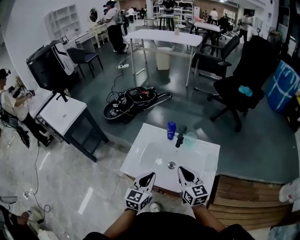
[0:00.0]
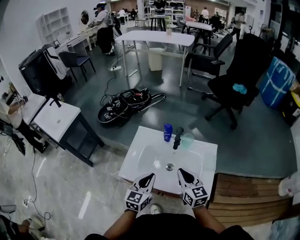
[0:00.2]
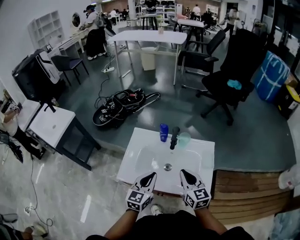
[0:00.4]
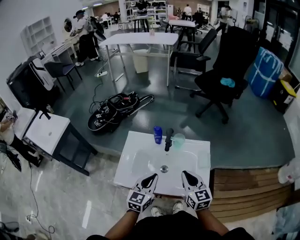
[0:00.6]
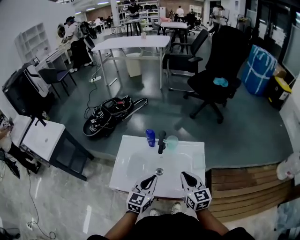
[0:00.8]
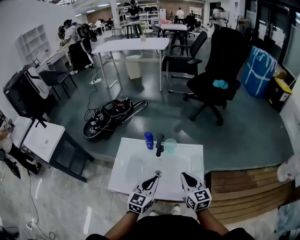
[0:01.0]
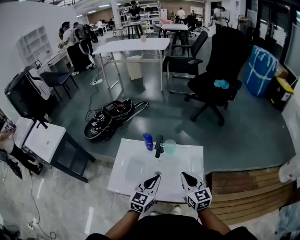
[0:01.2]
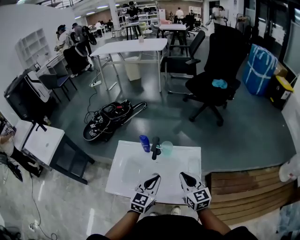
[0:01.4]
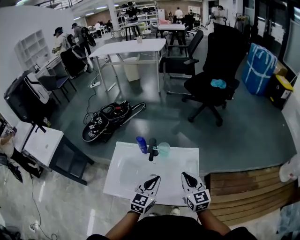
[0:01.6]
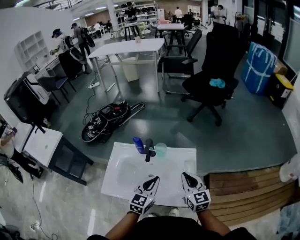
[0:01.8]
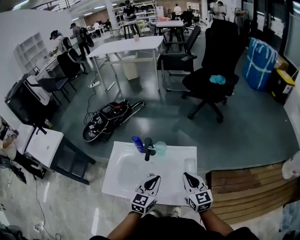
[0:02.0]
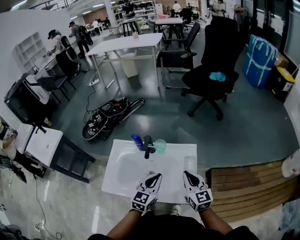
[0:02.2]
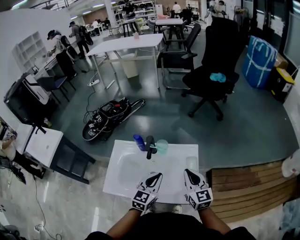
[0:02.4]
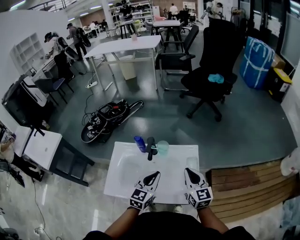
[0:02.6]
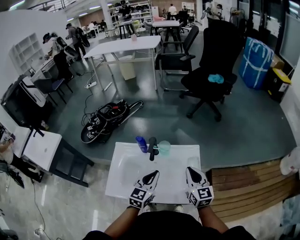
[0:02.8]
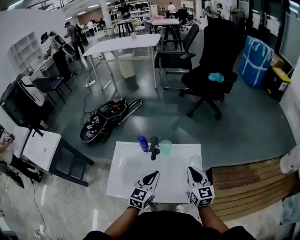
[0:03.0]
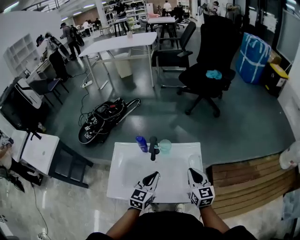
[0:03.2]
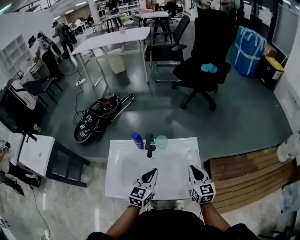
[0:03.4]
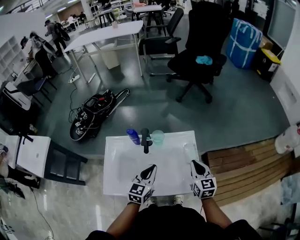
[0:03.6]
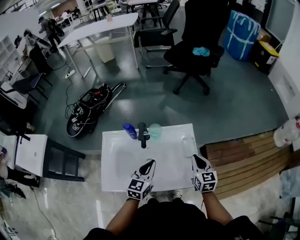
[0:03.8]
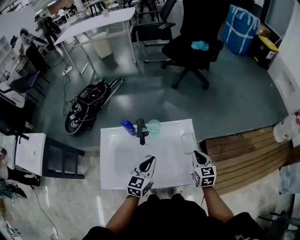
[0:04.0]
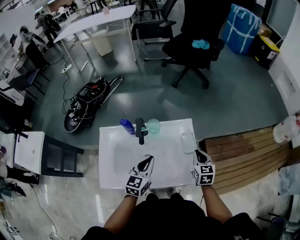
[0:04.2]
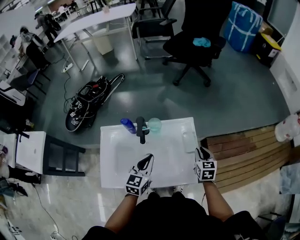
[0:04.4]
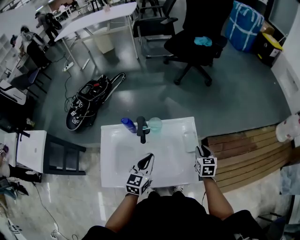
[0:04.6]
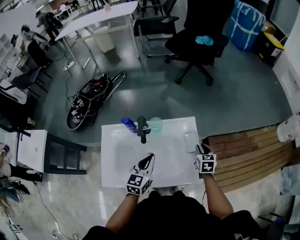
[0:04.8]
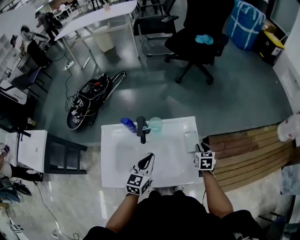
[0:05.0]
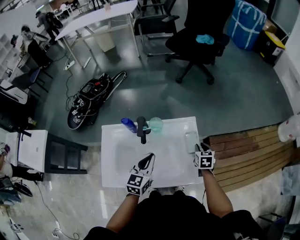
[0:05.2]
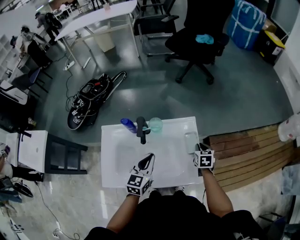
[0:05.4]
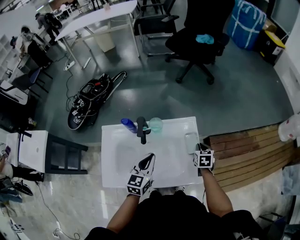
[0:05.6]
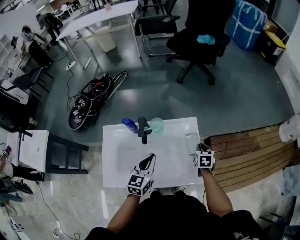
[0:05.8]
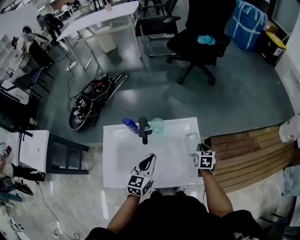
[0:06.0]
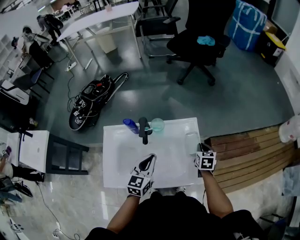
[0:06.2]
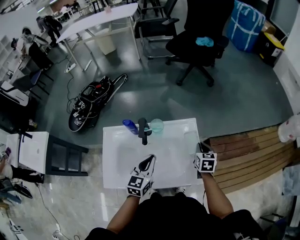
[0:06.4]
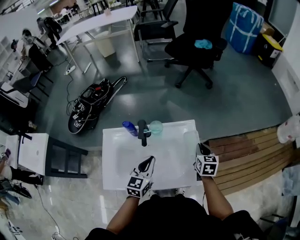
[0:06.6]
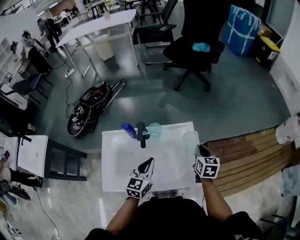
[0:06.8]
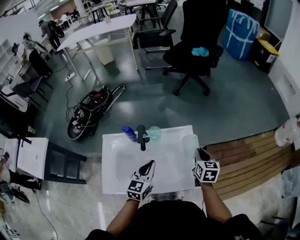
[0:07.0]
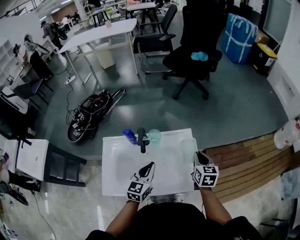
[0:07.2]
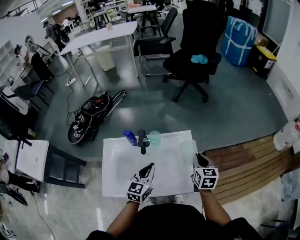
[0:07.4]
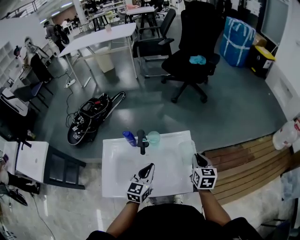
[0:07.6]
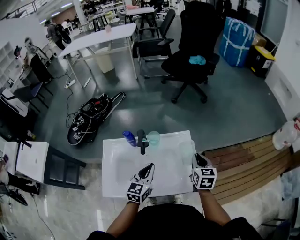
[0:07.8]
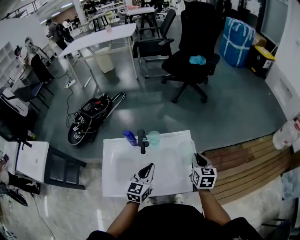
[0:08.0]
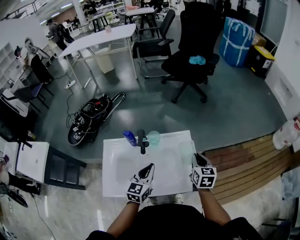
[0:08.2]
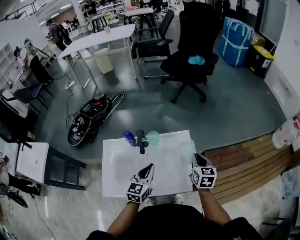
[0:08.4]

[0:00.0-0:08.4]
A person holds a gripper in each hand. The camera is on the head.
0:00.0 to 0:01.4: The left gripper heads to the right and forward, covering about 15 cm. The right gripper travels to the right by approximately 10 cm.
0:01.4 to 0:02.8: The right gripper changes place by about 5 cm.
0:02.8 to 0:04.2: The left gripper heads downward, covering about 5 cm. The right gripper goes approximately 15 cm downward and to the right, and turns by approximately 30 degrees.
0:04.2 to 0:05.6: The right gripper travels downward by some 10 cm.
0:05.6 to 0:07.0: The right gripper travels upward by approximately 15 cm.
0:07.0 to 0:08.4: The grippers move only a little.

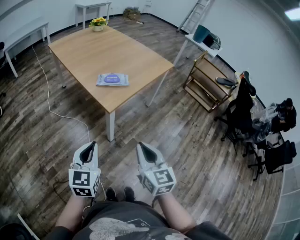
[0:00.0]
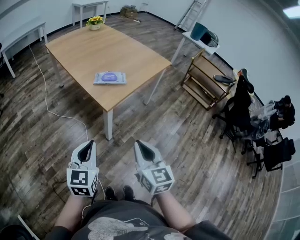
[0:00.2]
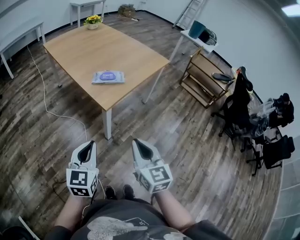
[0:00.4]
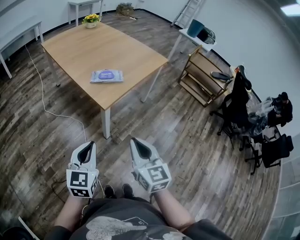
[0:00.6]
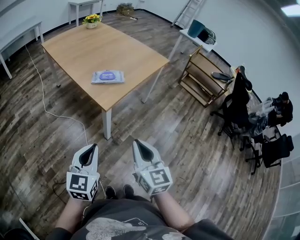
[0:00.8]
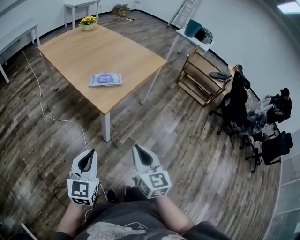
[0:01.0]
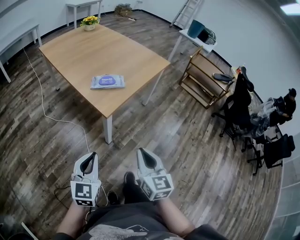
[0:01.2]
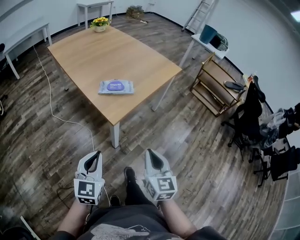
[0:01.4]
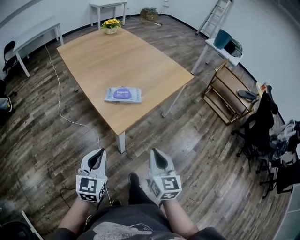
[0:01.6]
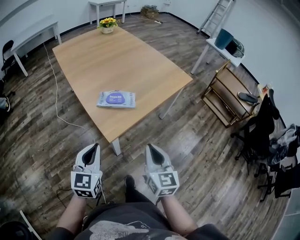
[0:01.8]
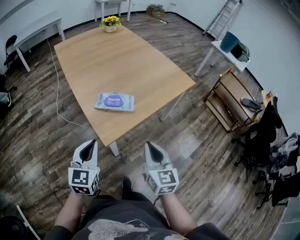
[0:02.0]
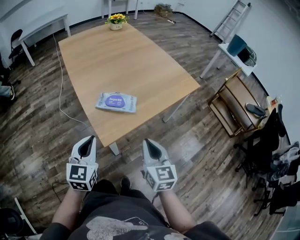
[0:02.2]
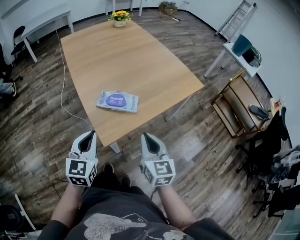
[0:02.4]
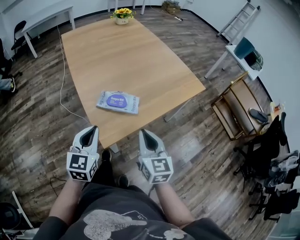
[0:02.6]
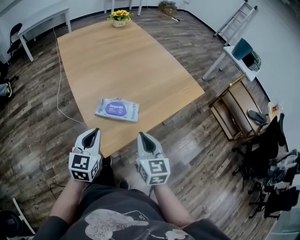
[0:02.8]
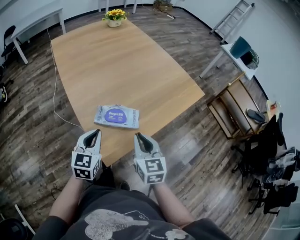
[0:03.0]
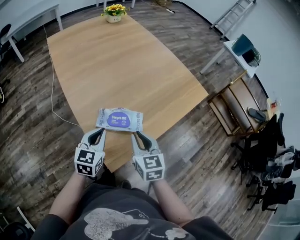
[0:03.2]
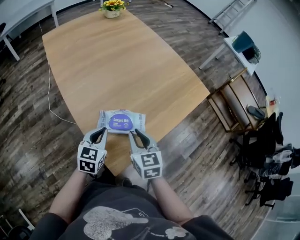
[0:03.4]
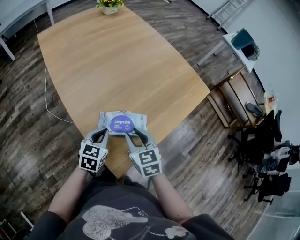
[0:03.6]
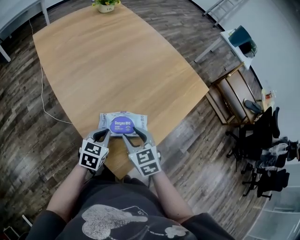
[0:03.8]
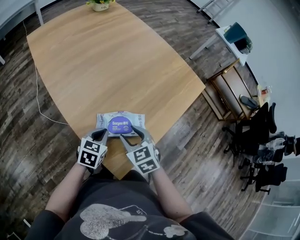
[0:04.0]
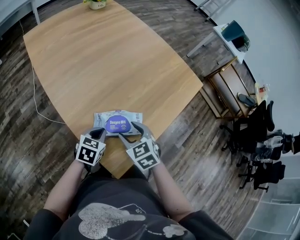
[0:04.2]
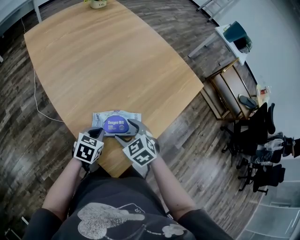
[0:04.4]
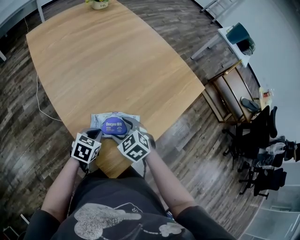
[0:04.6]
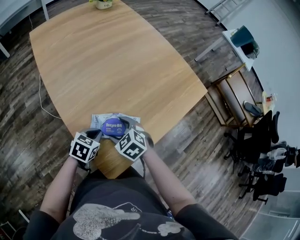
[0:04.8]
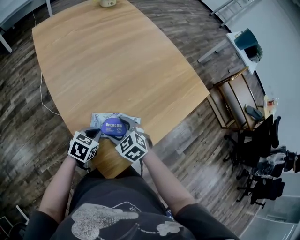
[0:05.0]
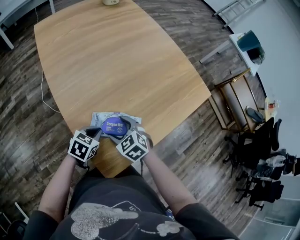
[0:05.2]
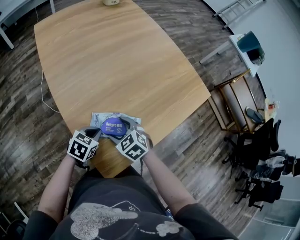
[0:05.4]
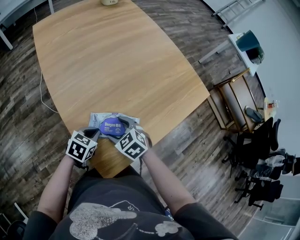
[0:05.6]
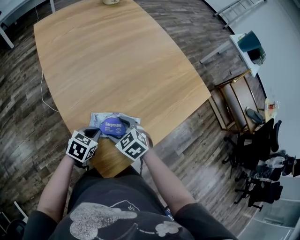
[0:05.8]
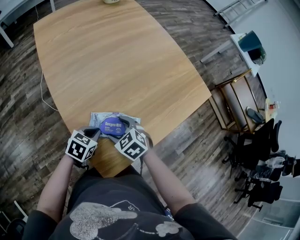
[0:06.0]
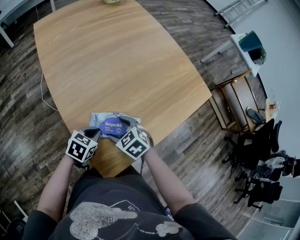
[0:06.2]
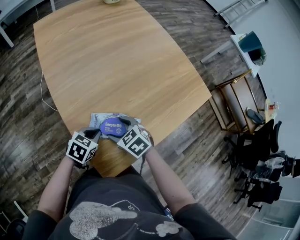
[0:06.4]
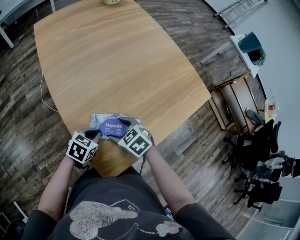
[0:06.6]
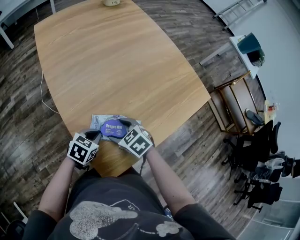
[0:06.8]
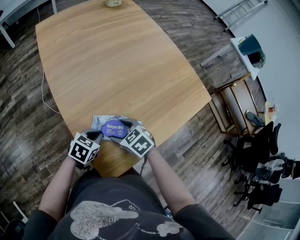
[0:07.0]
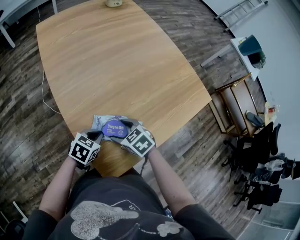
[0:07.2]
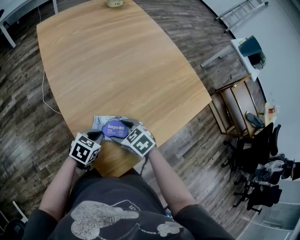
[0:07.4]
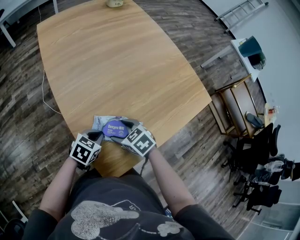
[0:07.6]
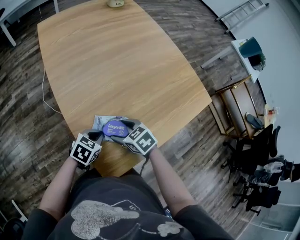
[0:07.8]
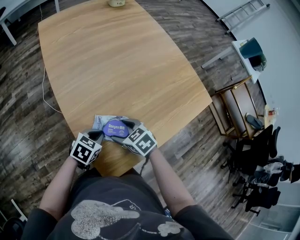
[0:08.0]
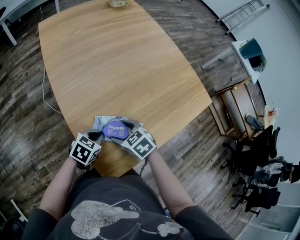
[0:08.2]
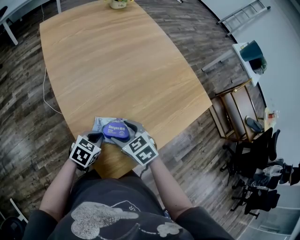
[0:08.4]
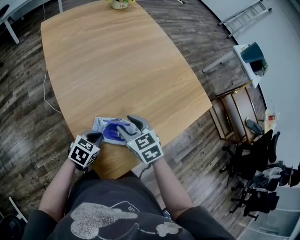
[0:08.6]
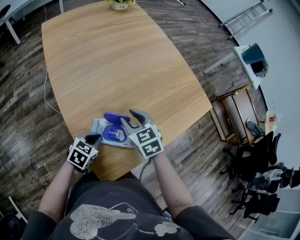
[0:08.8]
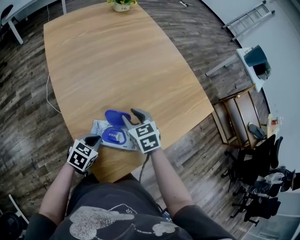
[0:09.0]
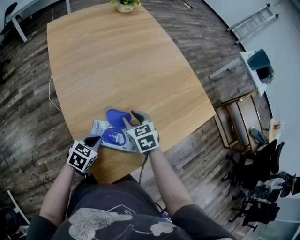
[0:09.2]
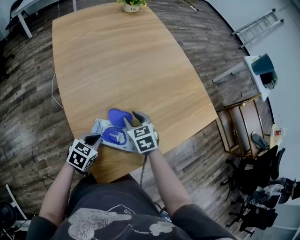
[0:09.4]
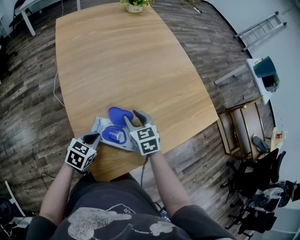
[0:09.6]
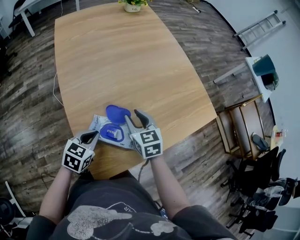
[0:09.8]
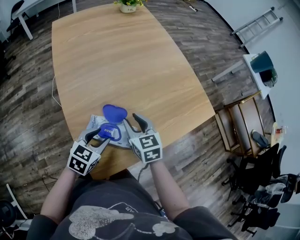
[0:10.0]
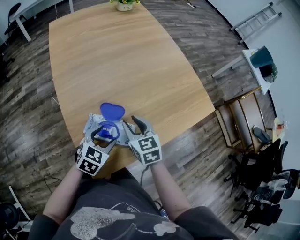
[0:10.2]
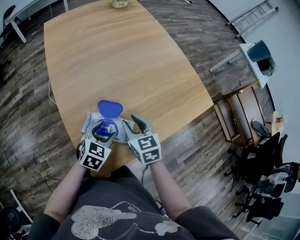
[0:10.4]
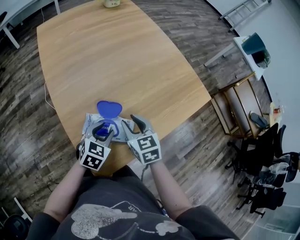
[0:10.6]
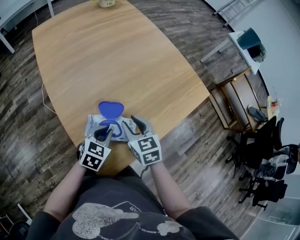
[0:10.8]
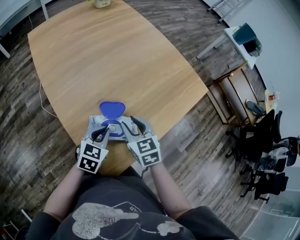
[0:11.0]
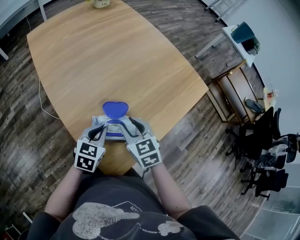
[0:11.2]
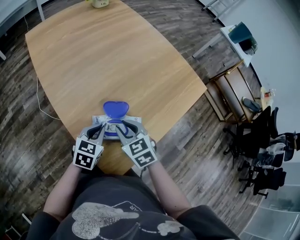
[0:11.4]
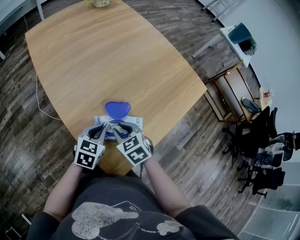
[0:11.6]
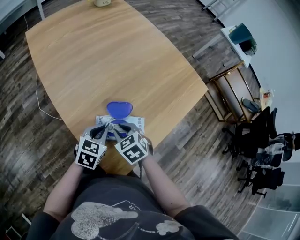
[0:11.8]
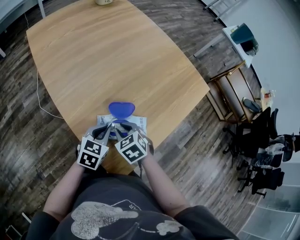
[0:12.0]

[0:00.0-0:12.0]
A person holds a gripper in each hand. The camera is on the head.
0:00.0 to 0:01.6: Both grippers travel together forward, about 15 cm.
0:01.6 to 0:03.0: Both grippers travel together forward, approximately 25 cm.
0:03.0 to 0:04.4: The right gripper shifts roughly 15 cm downward, to the left and forward, swivels roughly 40 degrees, and opens. Meanwhile the left gripper moves downward and forward, about 15 cm, and turns by approximately 40 degrees.
0:04.4 to 0:06.0: The grippers make only small movements.
0:06.0 to 0:07.6: The grippers stay close to where they were, moving slightly.
0:07.6 to 0:09.0: The right gripper moves forward and upward, some 10 cm, swivels roughly 20 degrees, and closes up.
0:09.0 to 0:10.4: The left gripper heads to the right, covering some 5 cm, and opens its fingers. Meanwhile the right gripper heads backward, covering some 5 cm.
0:10.4 to 0:12.0: The left gripper is displaced to the left by some 5 cm, and closes up; the right gripper heads to the left and downward, covering some 10 cm, and changes its angle by approximately 30 degrees.

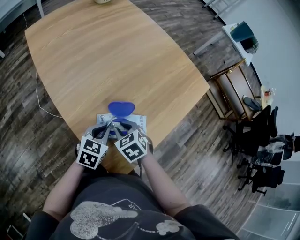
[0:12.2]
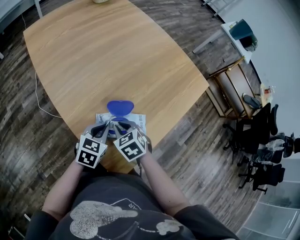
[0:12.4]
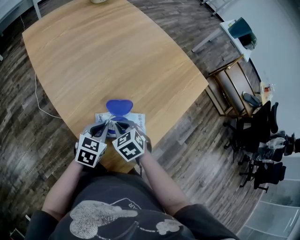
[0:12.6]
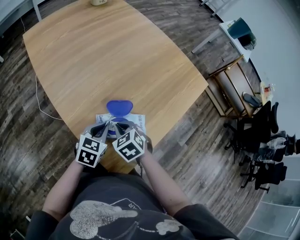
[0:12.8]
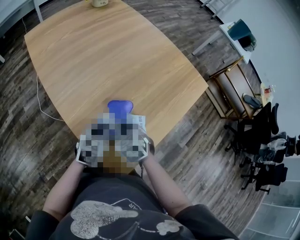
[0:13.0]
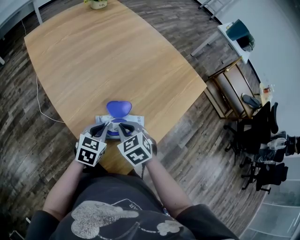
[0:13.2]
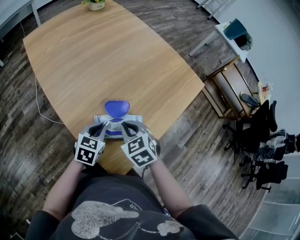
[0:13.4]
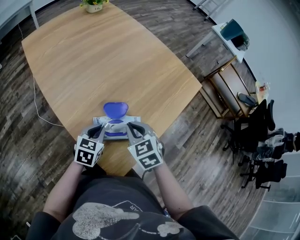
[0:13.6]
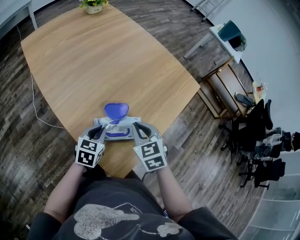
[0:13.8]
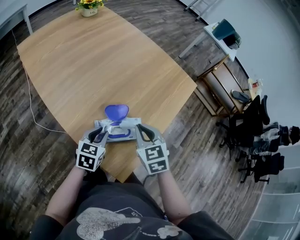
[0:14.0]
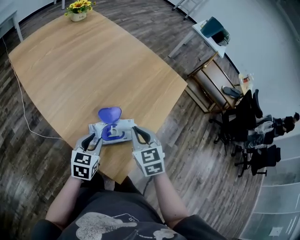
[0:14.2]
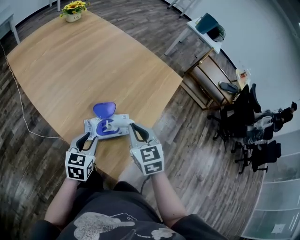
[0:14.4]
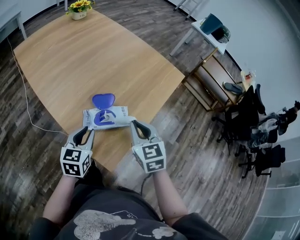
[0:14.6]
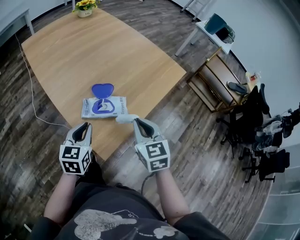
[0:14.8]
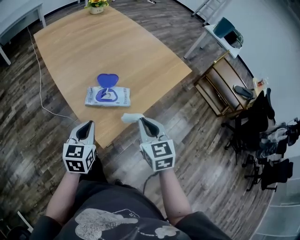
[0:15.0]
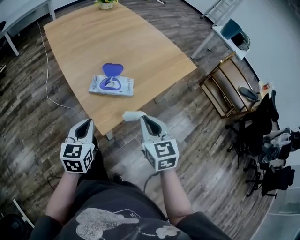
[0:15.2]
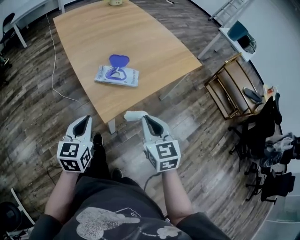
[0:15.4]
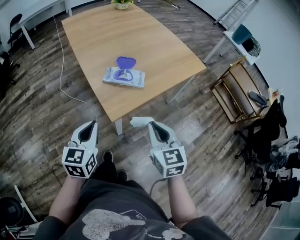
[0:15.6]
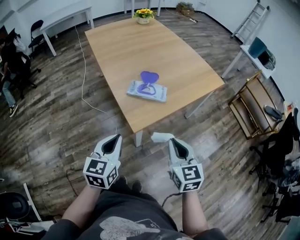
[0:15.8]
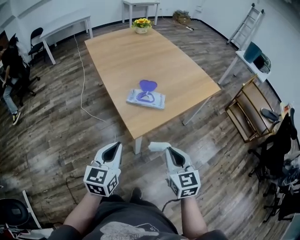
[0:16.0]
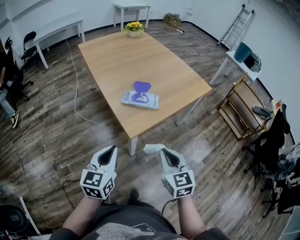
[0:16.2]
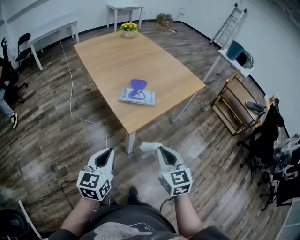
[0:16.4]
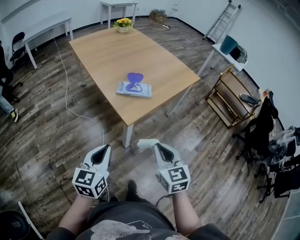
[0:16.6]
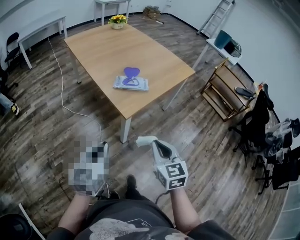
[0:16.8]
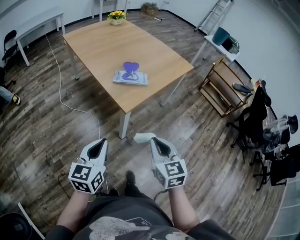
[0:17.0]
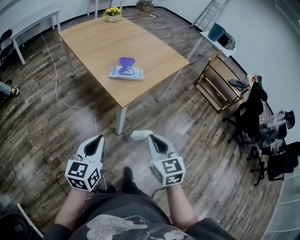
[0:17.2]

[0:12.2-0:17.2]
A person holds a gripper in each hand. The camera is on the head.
0:12.2 to 0:13.8: The right gripper goes some 10 cm upward and to the right, and changes its angle by about 20 degrees.
0:13.8 to 0:15.6: The left gripper moves approximately 30 cm, rotates roughly 30 degrees, and opens, then closes again. Meanwhile the right gripper ends up some 30 cm from where it was, and rotates some 20 degrees.
0:15.6 to 0:17.2: The right gripper heads backward and to the left, covering about 20 cm; the left gripper heads backward, covering some 15 cm.
